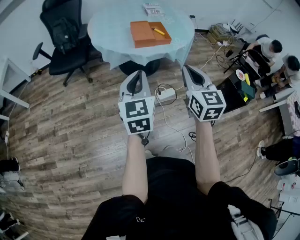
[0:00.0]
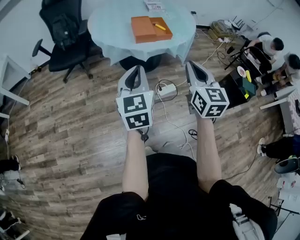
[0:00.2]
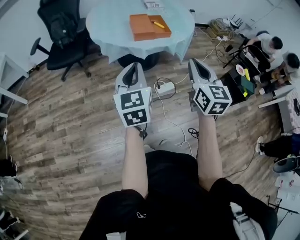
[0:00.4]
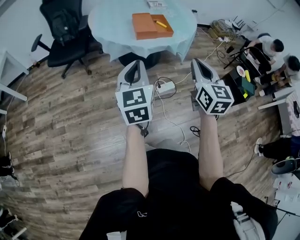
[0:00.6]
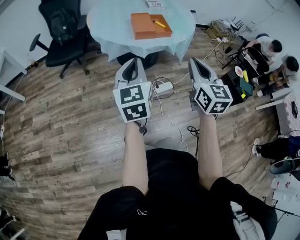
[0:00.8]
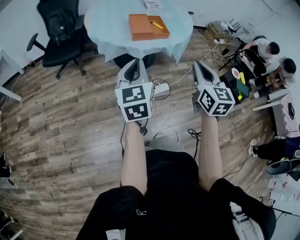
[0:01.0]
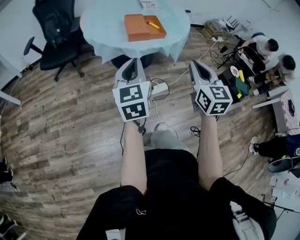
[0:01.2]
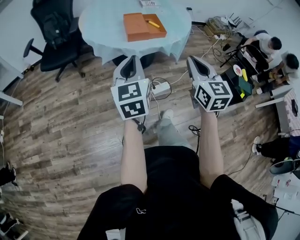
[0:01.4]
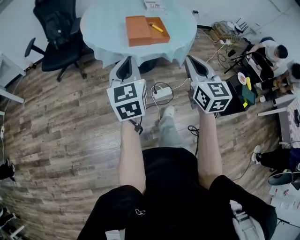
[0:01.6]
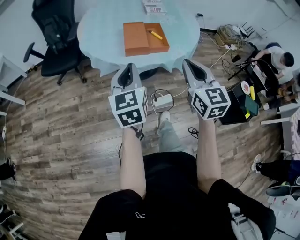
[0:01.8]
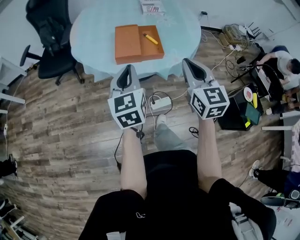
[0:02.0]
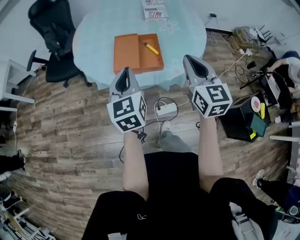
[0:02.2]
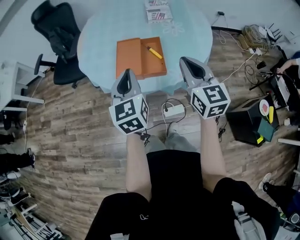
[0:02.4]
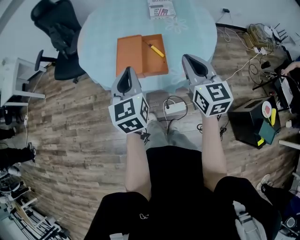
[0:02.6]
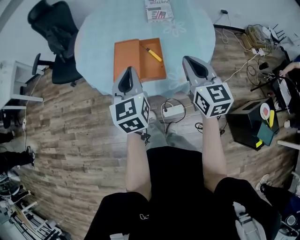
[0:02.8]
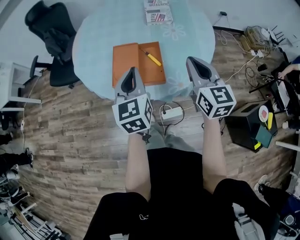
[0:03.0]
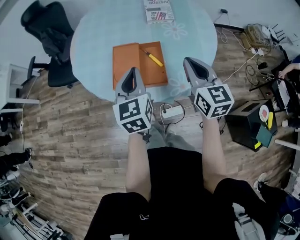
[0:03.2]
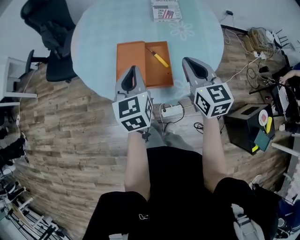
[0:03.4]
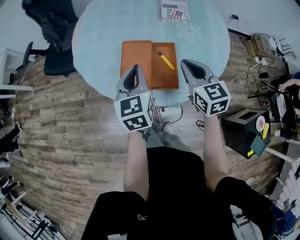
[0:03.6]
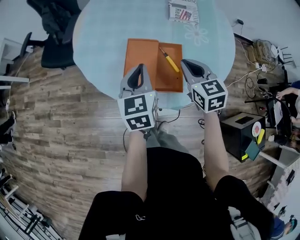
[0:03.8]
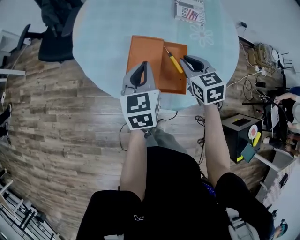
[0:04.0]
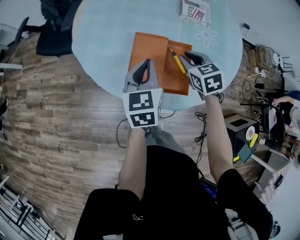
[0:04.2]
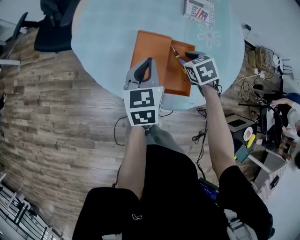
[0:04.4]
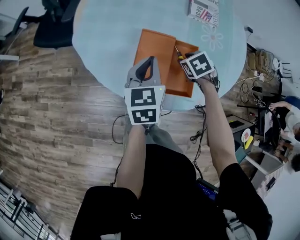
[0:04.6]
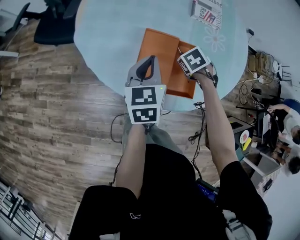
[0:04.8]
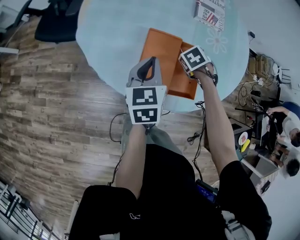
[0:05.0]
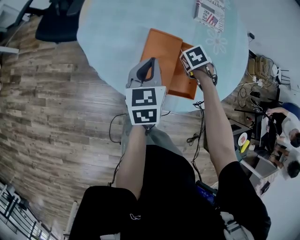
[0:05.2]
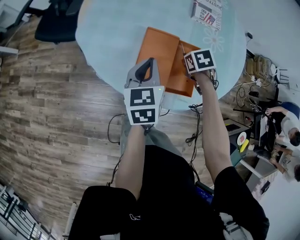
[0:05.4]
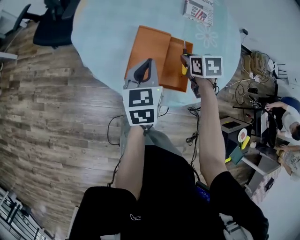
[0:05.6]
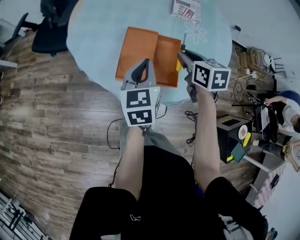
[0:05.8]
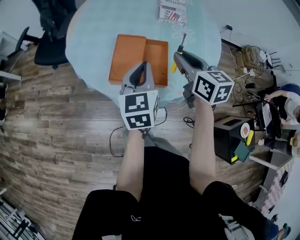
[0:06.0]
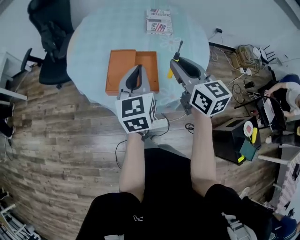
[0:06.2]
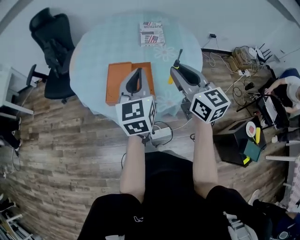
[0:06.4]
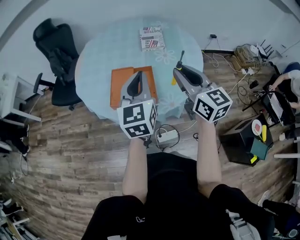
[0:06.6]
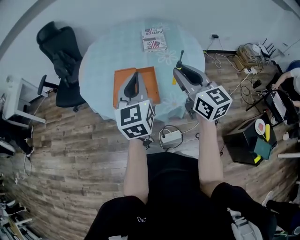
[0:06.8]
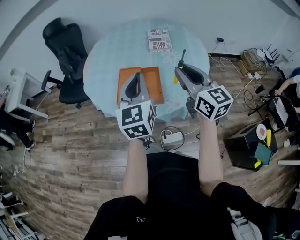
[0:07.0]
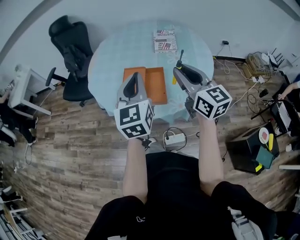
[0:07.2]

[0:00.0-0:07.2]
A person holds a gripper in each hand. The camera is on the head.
0.0 to 1.4 s: The left gripper travels forward by some 5 cm, while the right gripper moves forward and to the right, about 5 cm.
1.4 to 2.8 s: The grippers both shift forward and to the right by about 40 cm.
2.8 to 4.4 s: The right gripper is displaced downward and forward by approximately 30 cm, tilts its fingers some 50 degrees downward, and opens up, while the left gripper goes about 20 cm forward and downward.
4.4 to 5.8 s: The right gripper shifts roughly 10 cm upward, and turns by some 30 degrees; the left gripper changes place by some 5 cm.
5.8 to 7.2 s: The two grippers go approximately 25 cm upward and backward. The left gripper swivels some 30 degrees; the right gripper points its fingers some 40 degrees further upward.

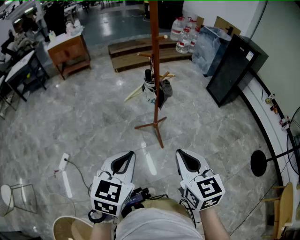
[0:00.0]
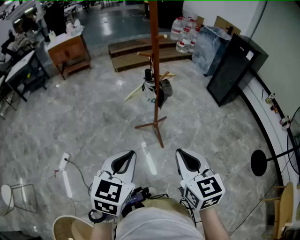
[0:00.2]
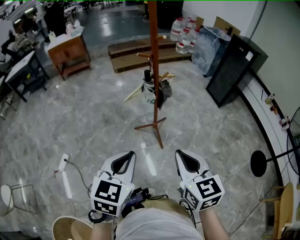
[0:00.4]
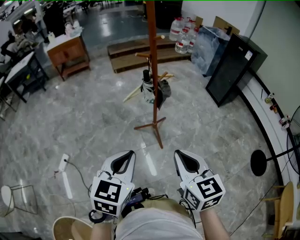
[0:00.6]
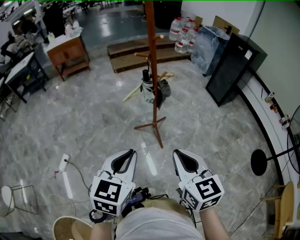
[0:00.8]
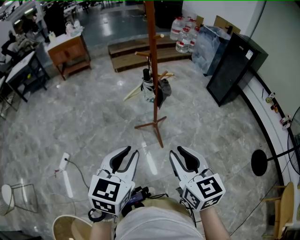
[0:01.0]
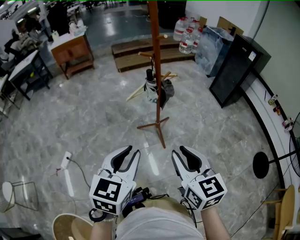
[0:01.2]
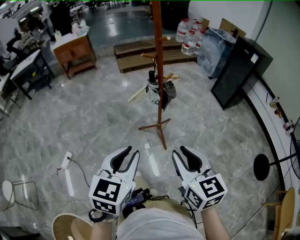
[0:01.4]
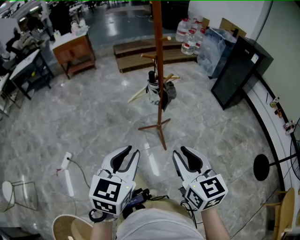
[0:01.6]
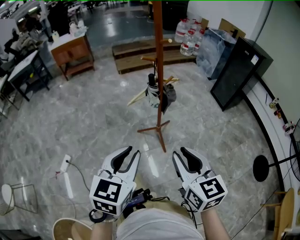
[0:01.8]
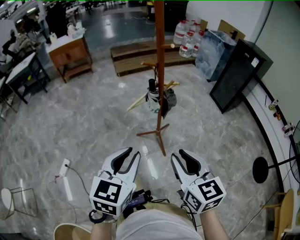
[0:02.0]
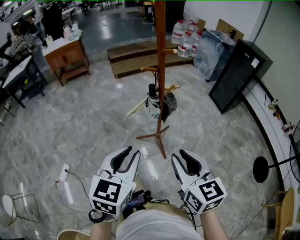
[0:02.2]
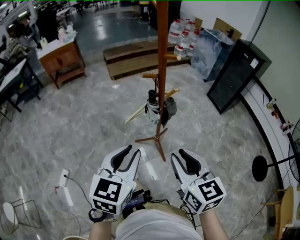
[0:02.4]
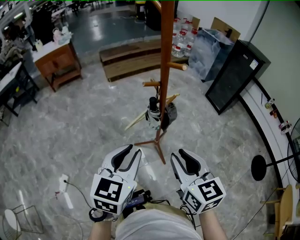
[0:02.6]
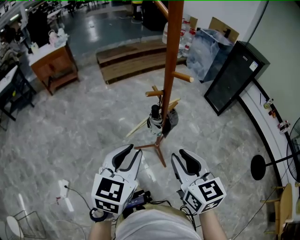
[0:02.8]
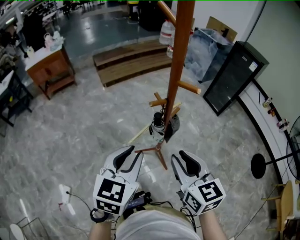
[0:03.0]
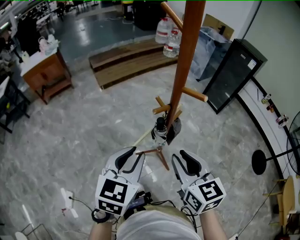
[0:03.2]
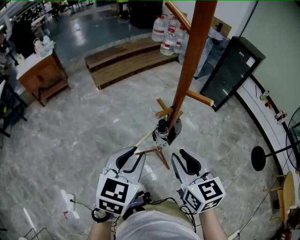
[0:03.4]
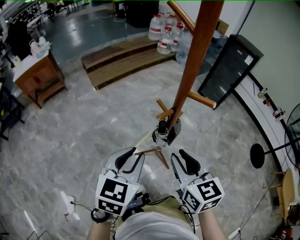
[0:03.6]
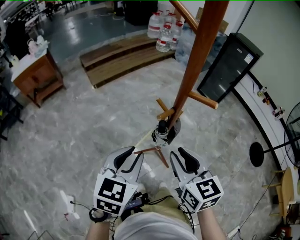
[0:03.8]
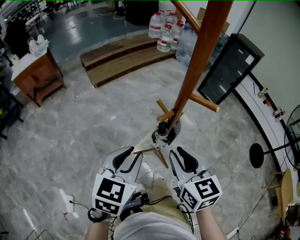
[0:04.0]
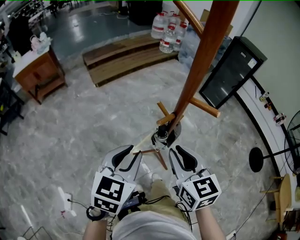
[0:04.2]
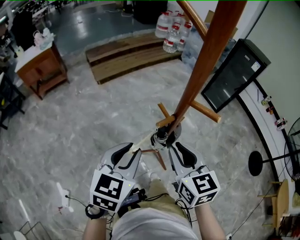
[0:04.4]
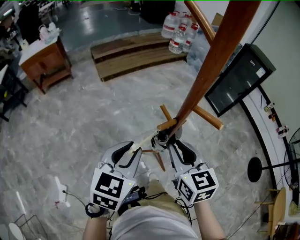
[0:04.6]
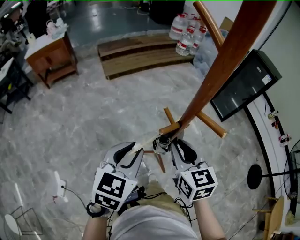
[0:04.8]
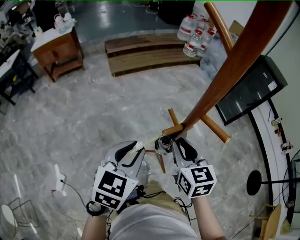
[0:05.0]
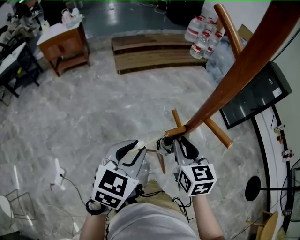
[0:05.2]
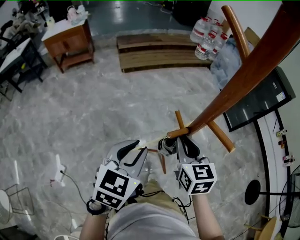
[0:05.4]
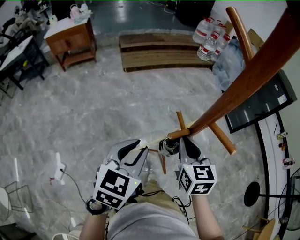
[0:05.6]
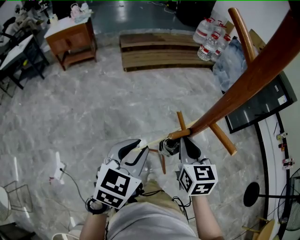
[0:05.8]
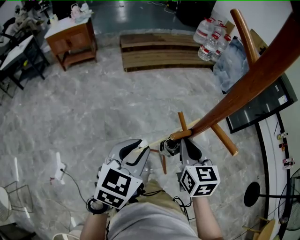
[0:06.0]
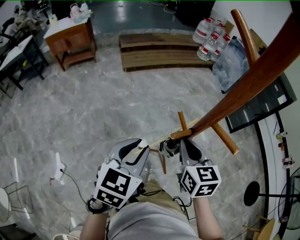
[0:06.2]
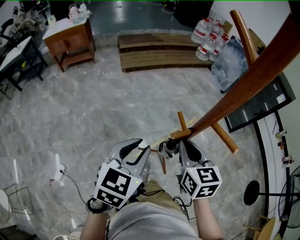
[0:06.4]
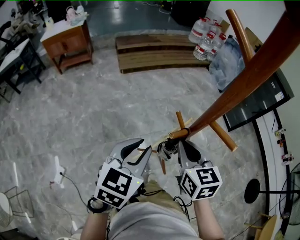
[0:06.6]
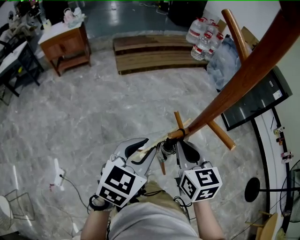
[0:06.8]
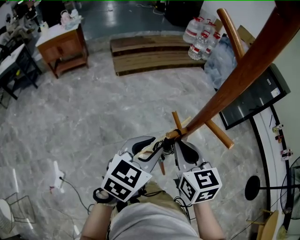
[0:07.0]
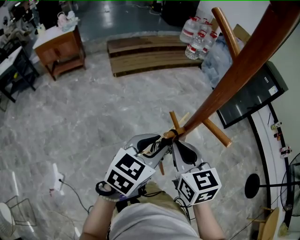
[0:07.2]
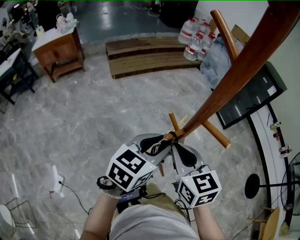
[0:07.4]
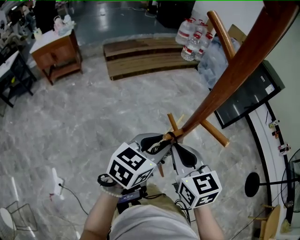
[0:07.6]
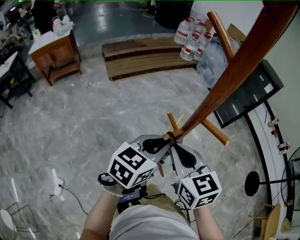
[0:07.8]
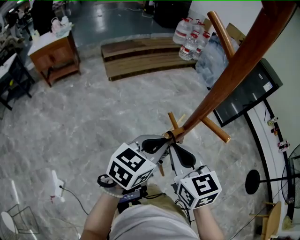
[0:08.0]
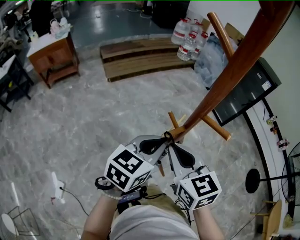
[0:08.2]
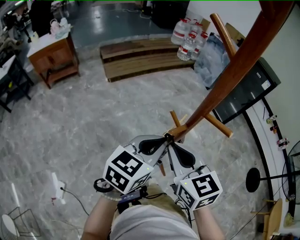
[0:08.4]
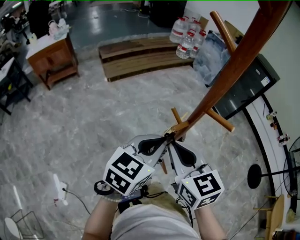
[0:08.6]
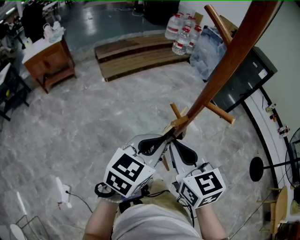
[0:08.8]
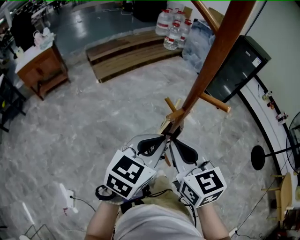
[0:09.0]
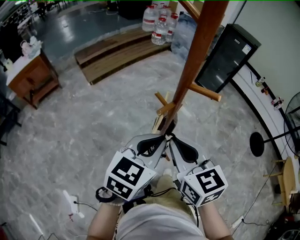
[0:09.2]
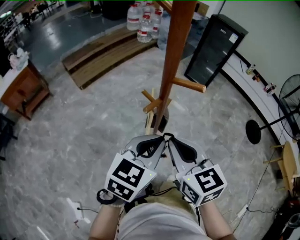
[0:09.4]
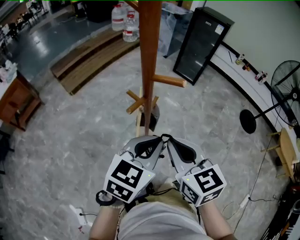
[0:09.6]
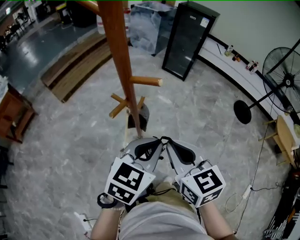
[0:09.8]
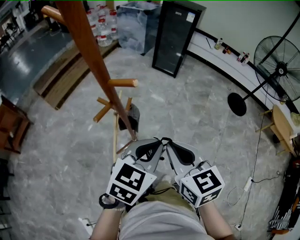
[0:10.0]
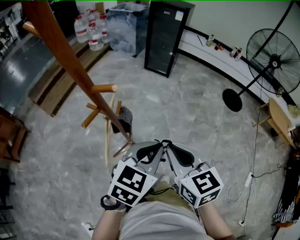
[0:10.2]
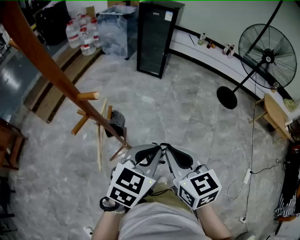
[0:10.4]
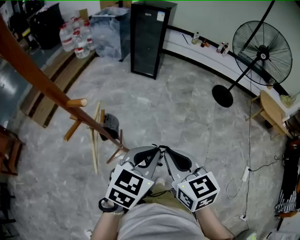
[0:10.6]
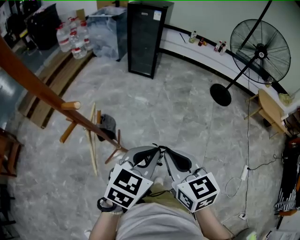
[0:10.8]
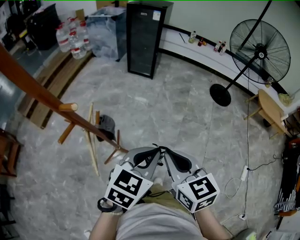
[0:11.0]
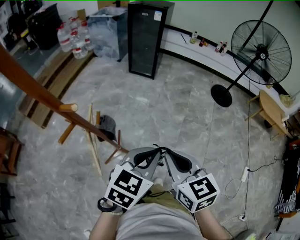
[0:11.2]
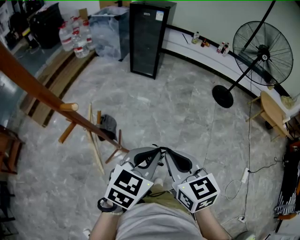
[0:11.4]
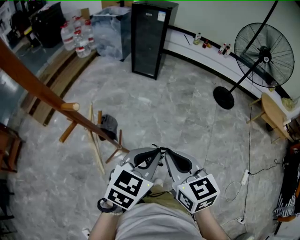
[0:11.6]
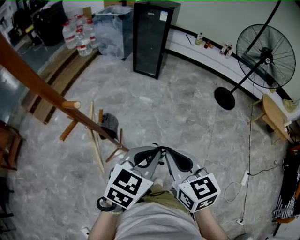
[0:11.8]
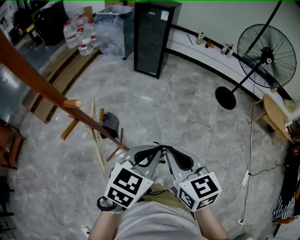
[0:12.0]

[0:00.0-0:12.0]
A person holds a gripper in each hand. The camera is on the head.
0.0 to 1.6 s: The right gripper opens its fingers.
1.6 to 3.0 s: The two grippers go roughly 25 cm forward.
3.0 to 4.4 s: The grippers both shift forward by roughly 10 cm.
4.4 to 6.0 s: The right gripper moves forward, approximately 10 cm.
6.0 to 7.6 s: The left gripper shifts some 10 cm to the right, and swivels some 20 degrees; the right gripper shifts by approximately 5 cm.
7.6 to 9.0 s: The grippers both shift backward by about 5 cm. The left gripper closes.
9.0 to 10.4 s: The right gripper moves approximately 25 cm, and turns by some 30 degrees. Meanwhile the left gripper changes place by approximately 25 cm, and turns by approximately 30 degrees.
10.4 to 12.0 s: The grippers move only a little.

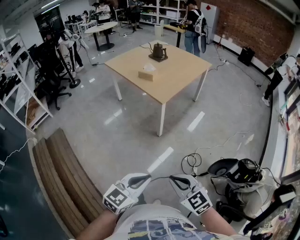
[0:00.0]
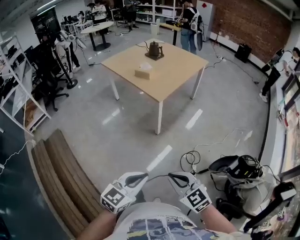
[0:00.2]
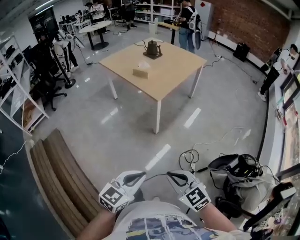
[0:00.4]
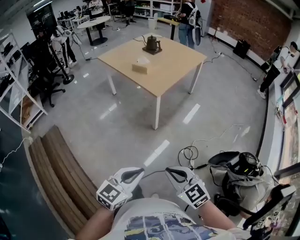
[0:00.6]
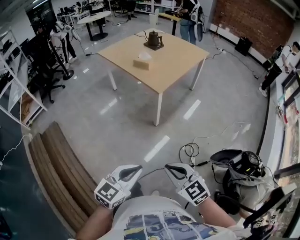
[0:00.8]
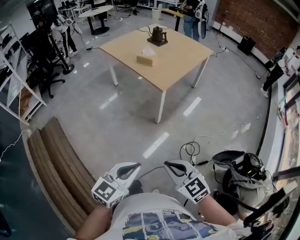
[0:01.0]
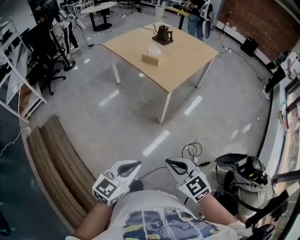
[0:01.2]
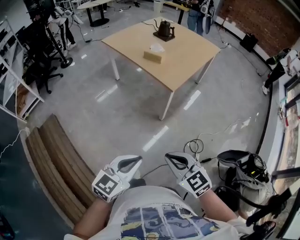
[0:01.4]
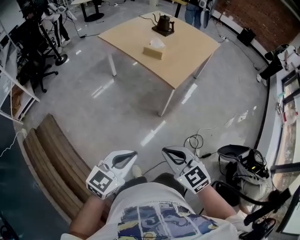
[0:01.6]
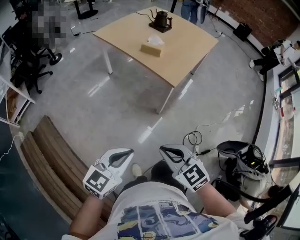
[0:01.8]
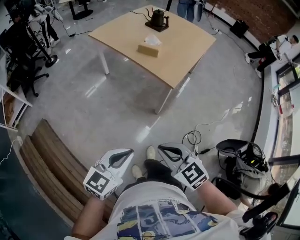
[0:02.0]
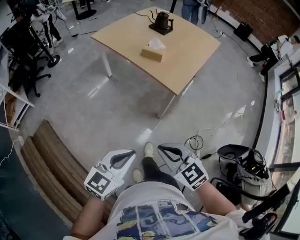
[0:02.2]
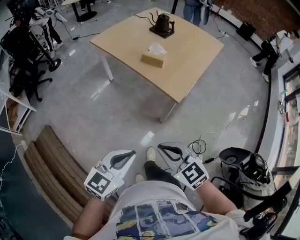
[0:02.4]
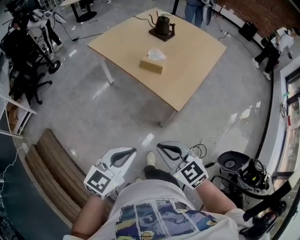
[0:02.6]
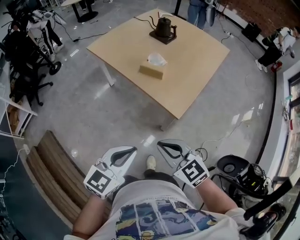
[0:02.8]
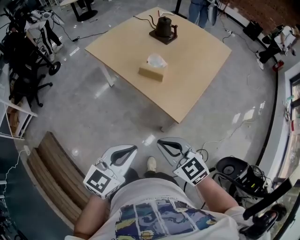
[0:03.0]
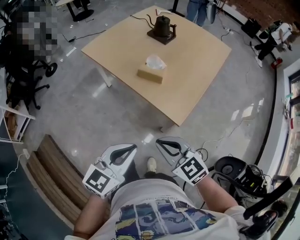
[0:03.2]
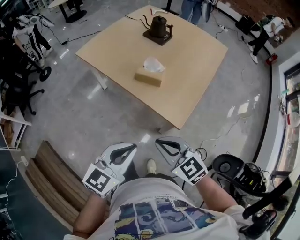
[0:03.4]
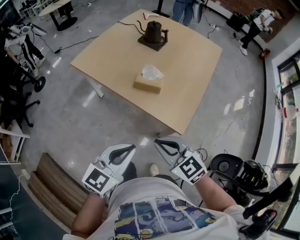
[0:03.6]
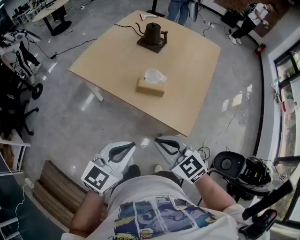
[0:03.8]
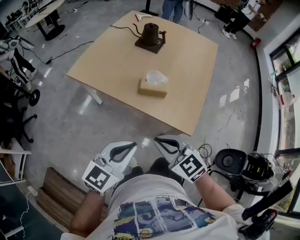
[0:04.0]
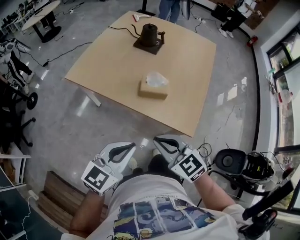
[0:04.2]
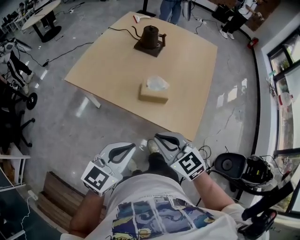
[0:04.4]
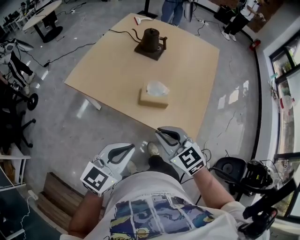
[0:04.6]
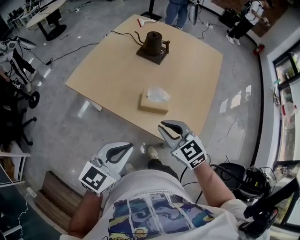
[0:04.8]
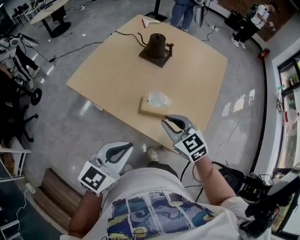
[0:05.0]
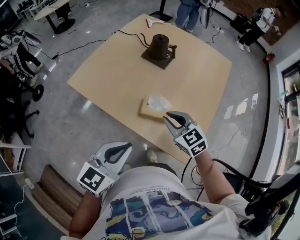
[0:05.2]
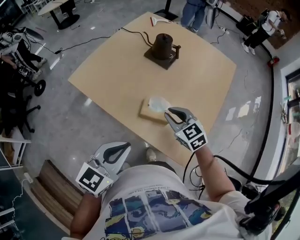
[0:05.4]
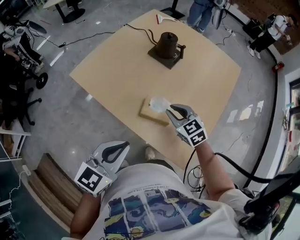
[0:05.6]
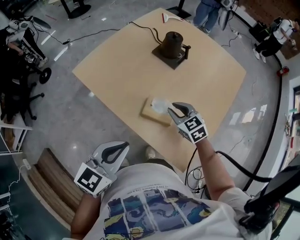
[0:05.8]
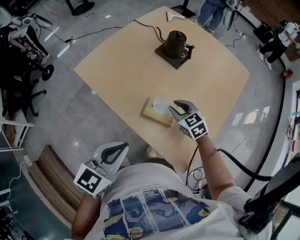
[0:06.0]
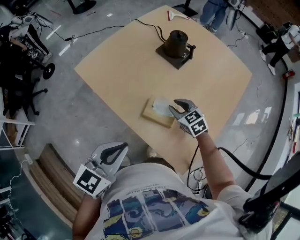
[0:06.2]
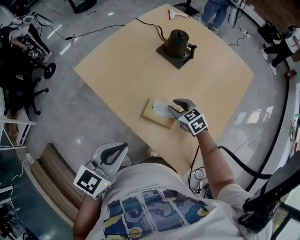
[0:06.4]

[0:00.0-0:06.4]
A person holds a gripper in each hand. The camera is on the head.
0.0 to 1.6 s: Both grippers move to the left and forward, roughly 25 cm.
1.6 to 3.2 s: Both grippers move forward, about 35 cm.
3.2 to 4.8 s: The left gripper is displaced forward and to the left by some 25 cm. The right gripper heads forward, covering some 25 cm.
4.8 to 6.4 s: The left gripper goes about 10 cm forward. Meanwhile the right gripper travels forward and downward by roughly 25 cm, rotates some 20 degrees, and opens its fingers.
